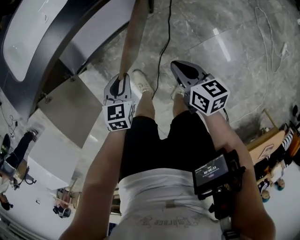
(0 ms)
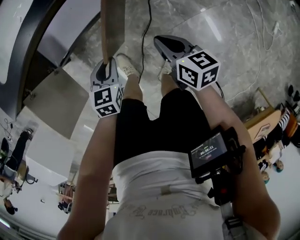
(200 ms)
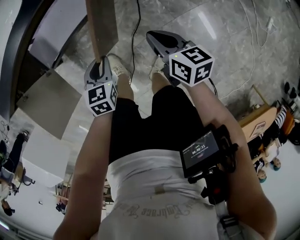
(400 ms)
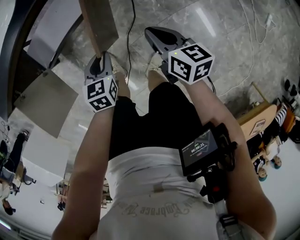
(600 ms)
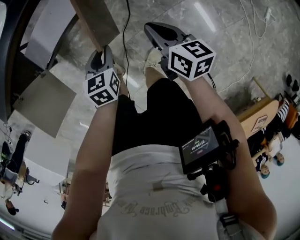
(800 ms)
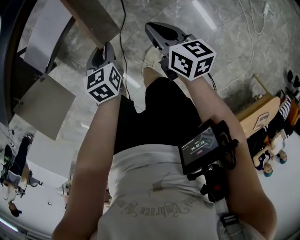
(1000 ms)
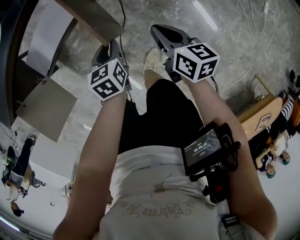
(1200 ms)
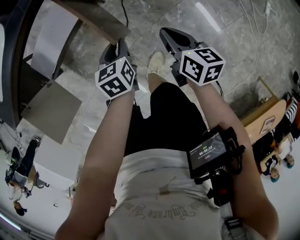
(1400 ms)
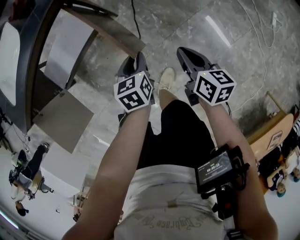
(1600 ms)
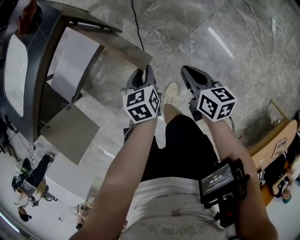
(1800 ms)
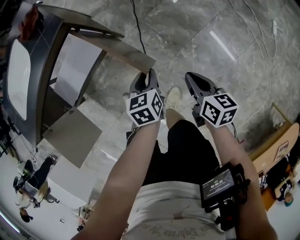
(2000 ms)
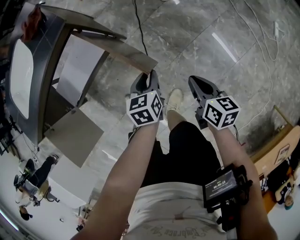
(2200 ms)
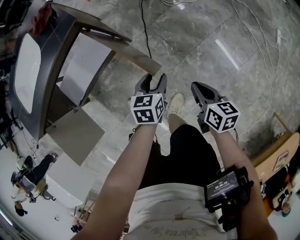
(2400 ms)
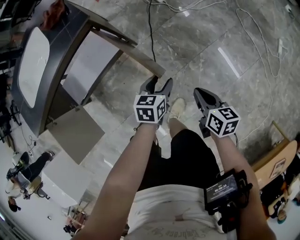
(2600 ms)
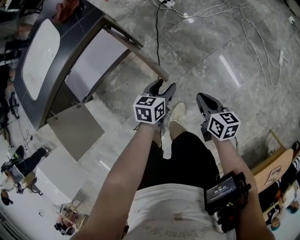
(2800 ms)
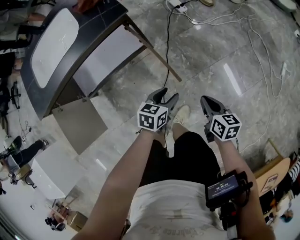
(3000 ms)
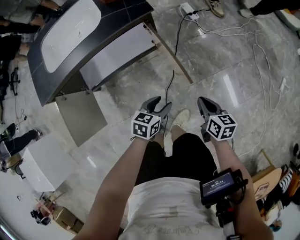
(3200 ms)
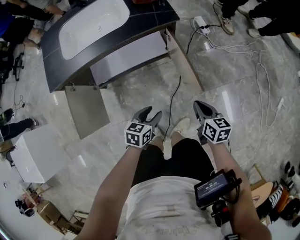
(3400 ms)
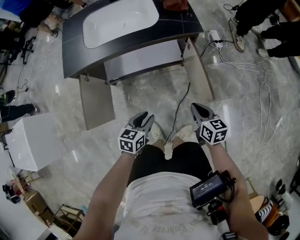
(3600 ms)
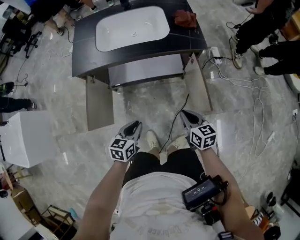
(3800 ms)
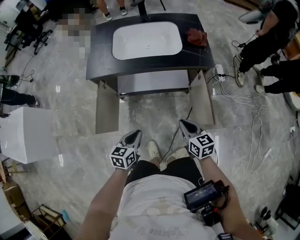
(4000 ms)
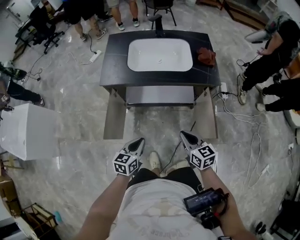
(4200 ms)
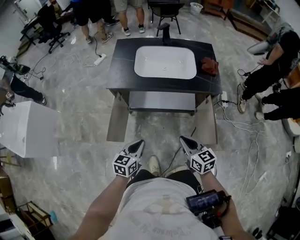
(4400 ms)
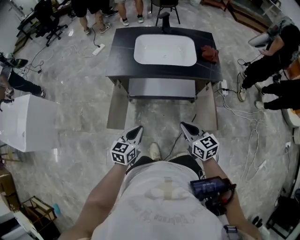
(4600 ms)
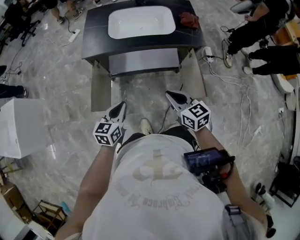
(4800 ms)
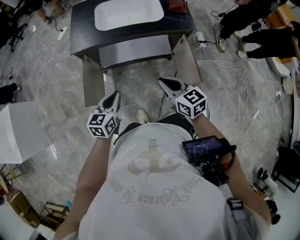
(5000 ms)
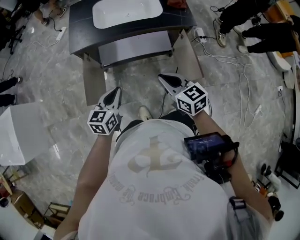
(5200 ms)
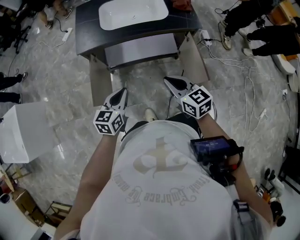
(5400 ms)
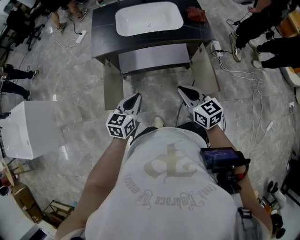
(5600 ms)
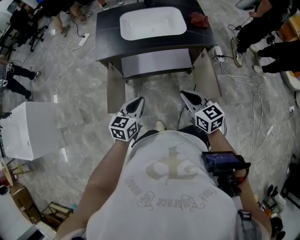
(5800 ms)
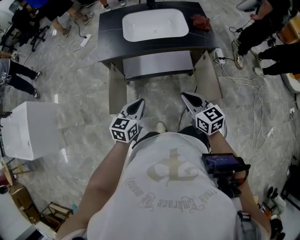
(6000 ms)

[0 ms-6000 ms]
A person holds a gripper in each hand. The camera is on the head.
0 ms to 1600 ms: The grippers both shift to the right by some 30 cm. The right gripper changes its angle by roughly 20 degrees.
1600 ms to 3000 ms: The left gripper rotates some 20 degrees, and opens its fingers.
3000 ms to 4400 ms: Both grippers are carried roughly 40 cm. The left gripper turns by about 40 degrees, and closes up. Meanwhile the right gripper changes its angle by roughly 50 degrees.
4400 ms to 6000 ms: The grippers move only a little.

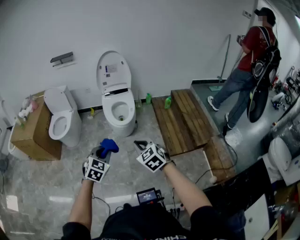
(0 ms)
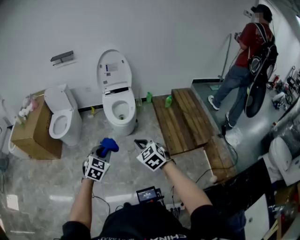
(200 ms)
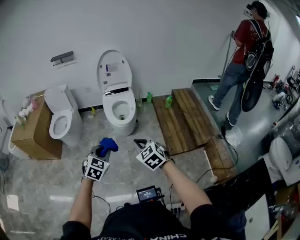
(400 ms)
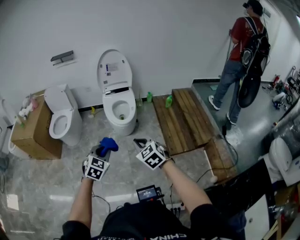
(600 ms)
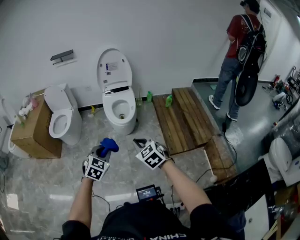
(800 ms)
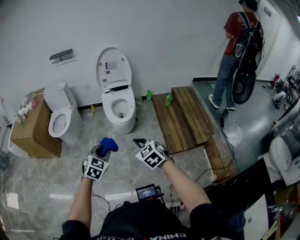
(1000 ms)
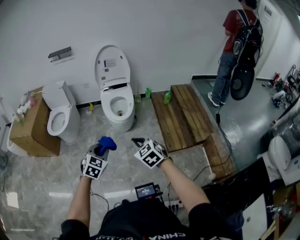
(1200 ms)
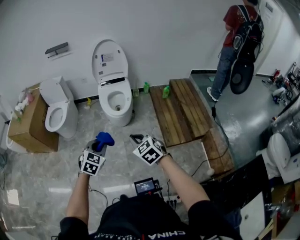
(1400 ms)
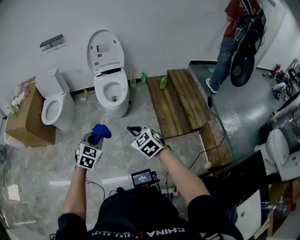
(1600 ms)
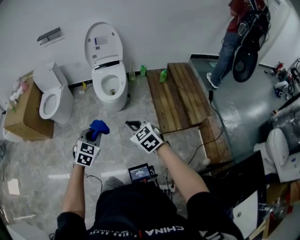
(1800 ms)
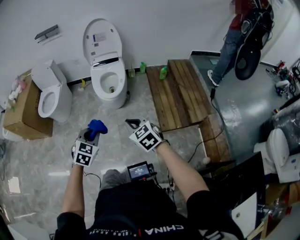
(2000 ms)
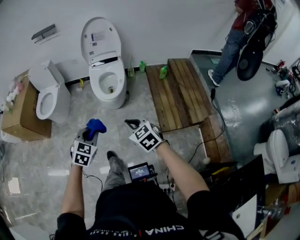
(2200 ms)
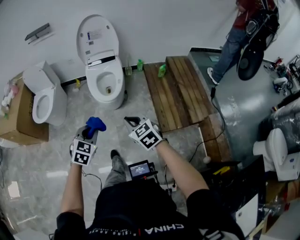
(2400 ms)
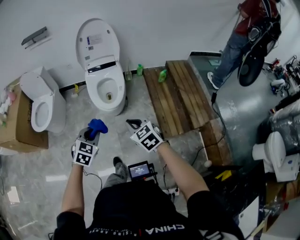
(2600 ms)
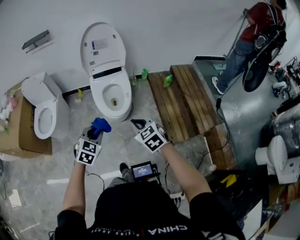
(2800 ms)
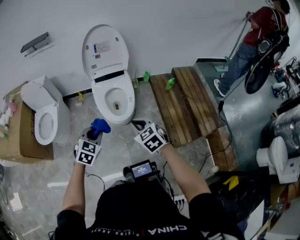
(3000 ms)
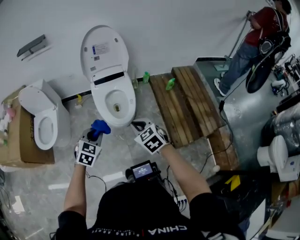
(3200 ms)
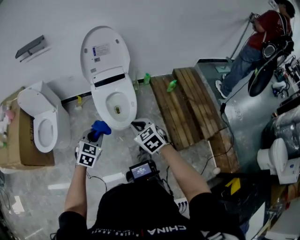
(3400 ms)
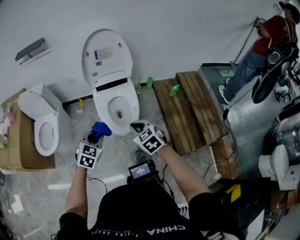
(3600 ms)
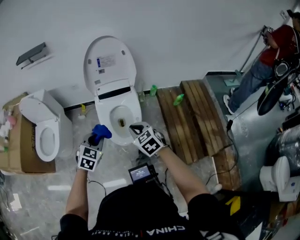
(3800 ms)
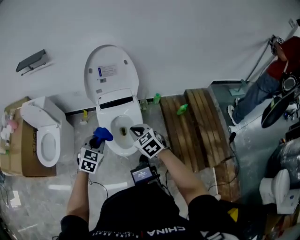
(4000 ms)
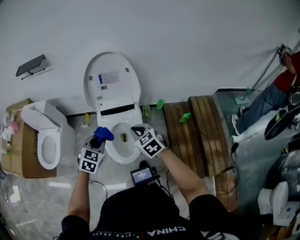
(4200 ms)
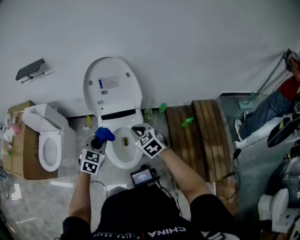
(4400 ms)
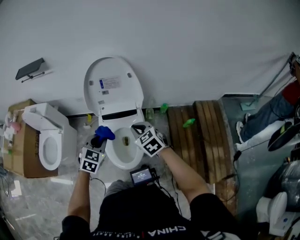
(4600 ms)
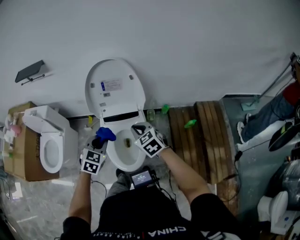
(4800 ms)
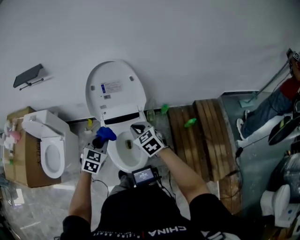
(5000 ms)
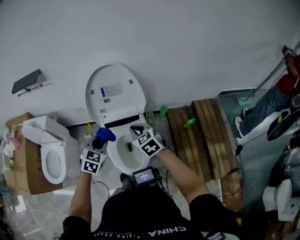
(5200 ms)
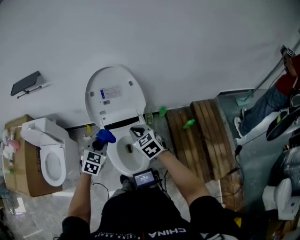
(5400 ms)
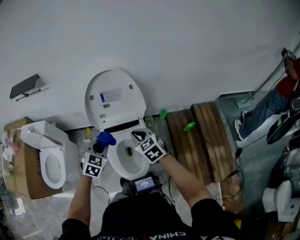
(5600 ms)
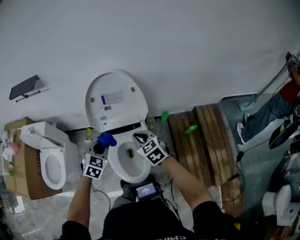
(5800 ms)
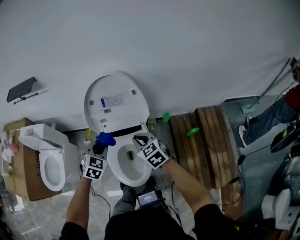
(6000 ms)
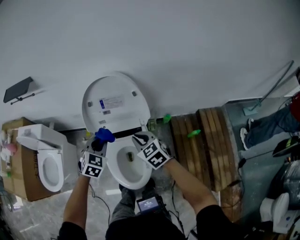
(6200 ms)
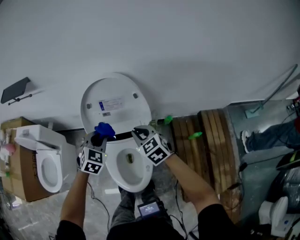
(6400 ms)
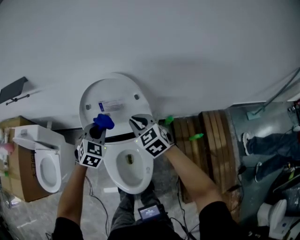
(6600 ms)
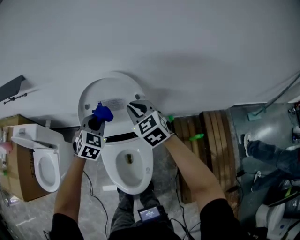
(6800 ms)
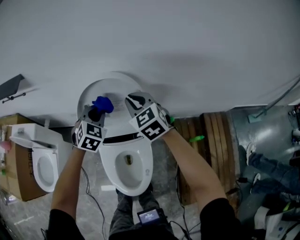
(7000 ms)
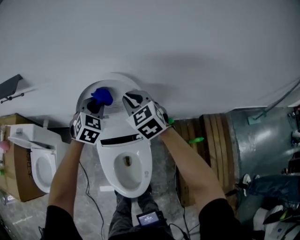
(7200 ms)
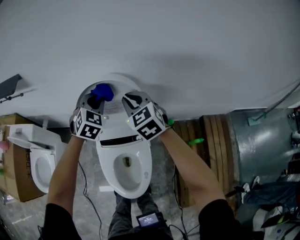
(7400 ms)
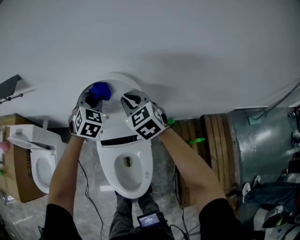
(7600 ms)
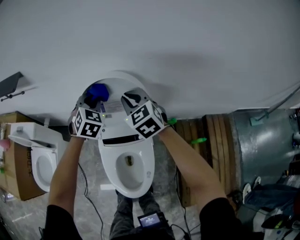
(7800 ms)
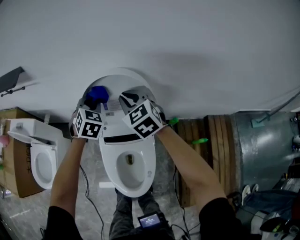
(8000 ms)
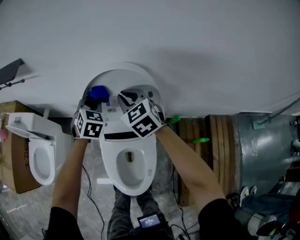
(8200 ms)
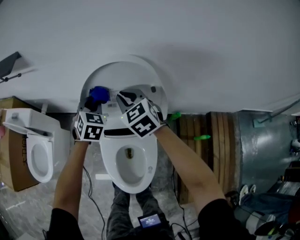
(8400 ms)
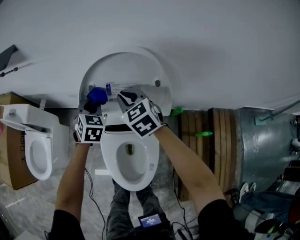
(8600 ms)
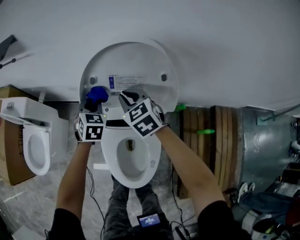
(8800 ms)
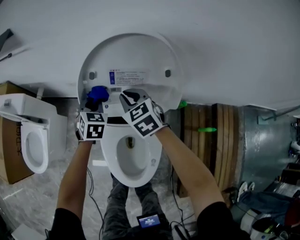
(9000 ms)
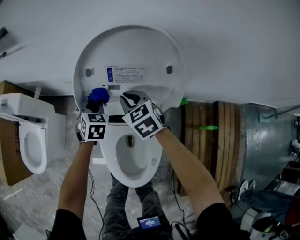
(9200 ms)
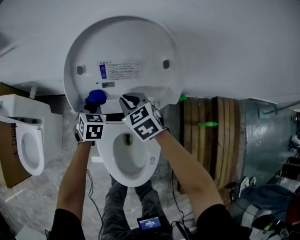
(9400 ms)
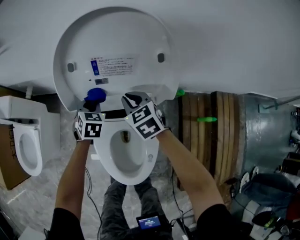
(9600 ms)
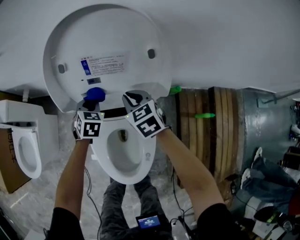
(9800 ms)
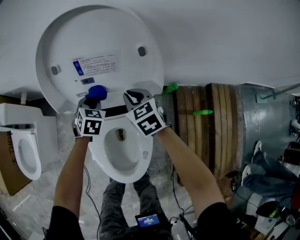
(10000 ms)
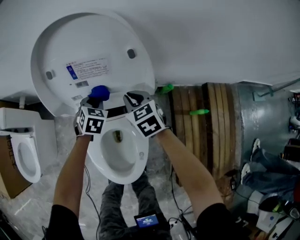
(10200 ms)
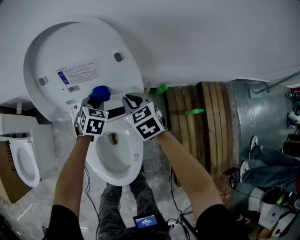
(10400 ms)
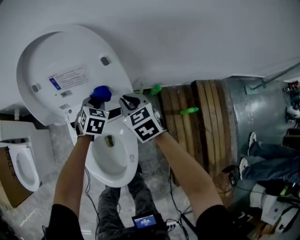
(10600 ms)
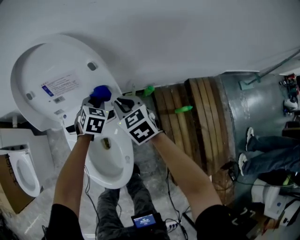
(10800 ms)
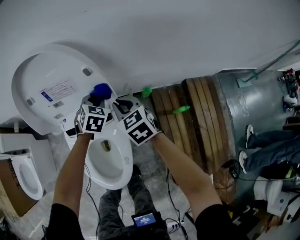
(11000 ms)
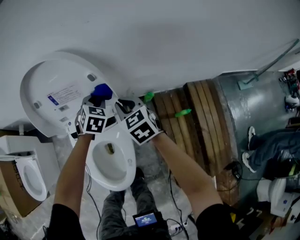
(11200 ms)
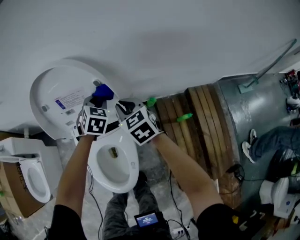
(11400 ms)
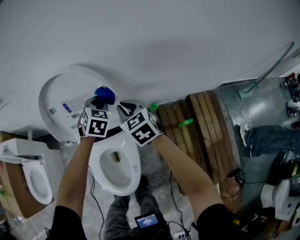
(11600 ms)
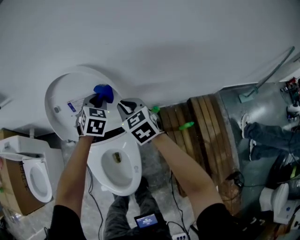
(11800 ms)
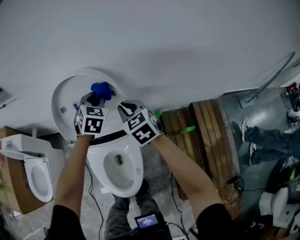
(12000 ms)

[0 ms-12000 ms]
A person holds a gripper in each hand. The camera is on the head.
0 ms to 1600 ms: The left gripper ends up roughly 5 cm from where it was.
1600 ms to 3000 ms: Both grippers move forward, about 35 cm.
3000 ms to 4400 ms: The grippers both shift forward by some 40 cm.
4400 ms to 6000 ms: The two grippers go approximately 15 cm forward.
6000 ms to 7600 ms: Both grippers move forward, about 25 cm.
7600 ms to 9000 ms: The two grippers go about 25 cm downward and to the left. The left gripper rotates some 30 degrees.
9000 ms to 10400 ms: The right gripper shifts roughly 20 cm to the right, backward and downward, while the left gripper shifts some 20 cm to the right and downward.
10400 ms to 12000 ms: The grippers both shift upward by some 20 cm.

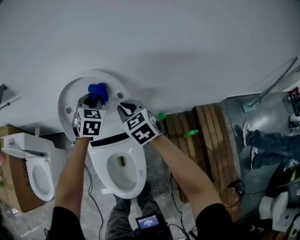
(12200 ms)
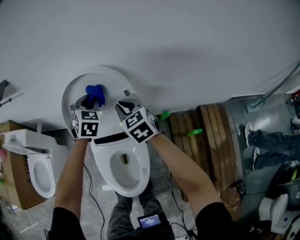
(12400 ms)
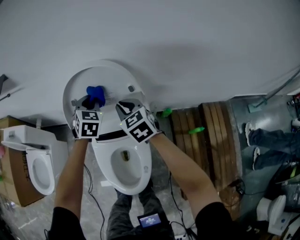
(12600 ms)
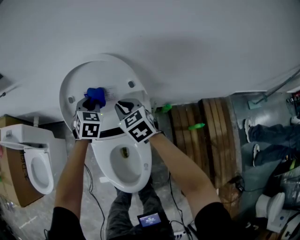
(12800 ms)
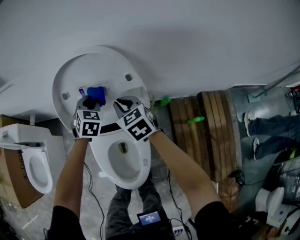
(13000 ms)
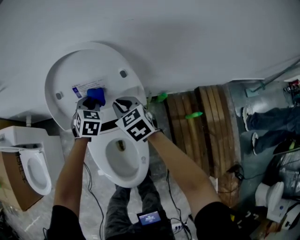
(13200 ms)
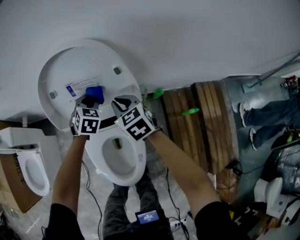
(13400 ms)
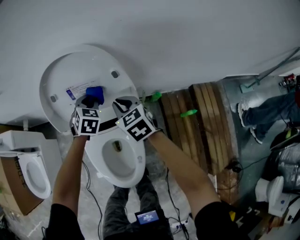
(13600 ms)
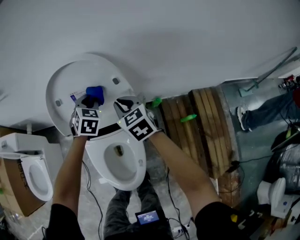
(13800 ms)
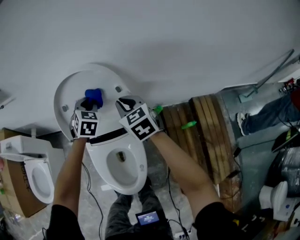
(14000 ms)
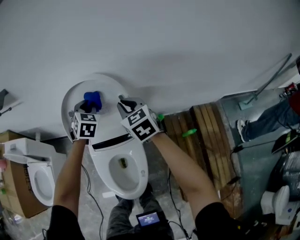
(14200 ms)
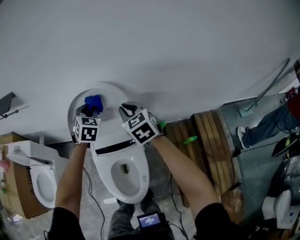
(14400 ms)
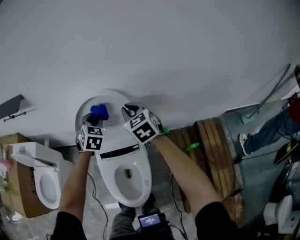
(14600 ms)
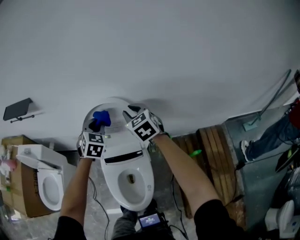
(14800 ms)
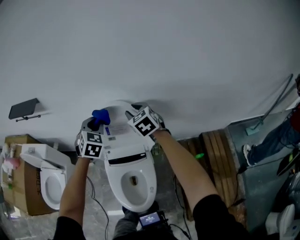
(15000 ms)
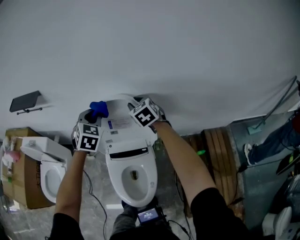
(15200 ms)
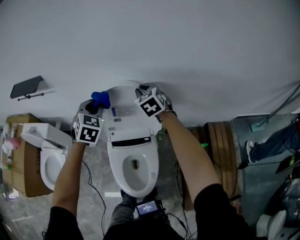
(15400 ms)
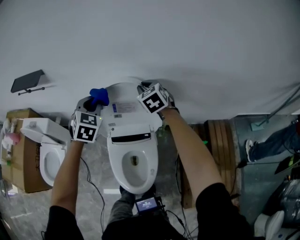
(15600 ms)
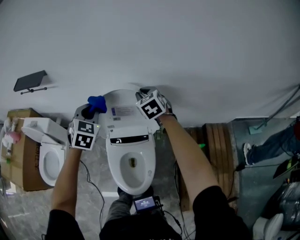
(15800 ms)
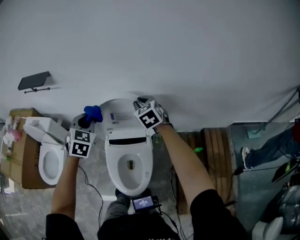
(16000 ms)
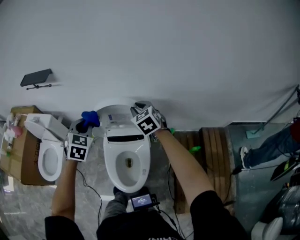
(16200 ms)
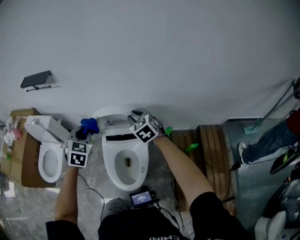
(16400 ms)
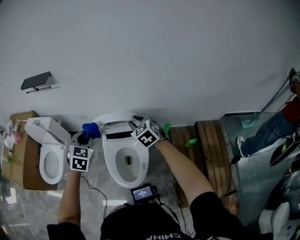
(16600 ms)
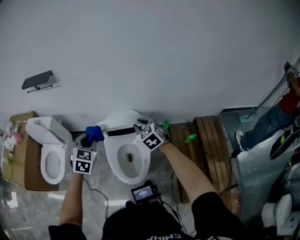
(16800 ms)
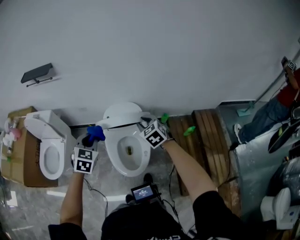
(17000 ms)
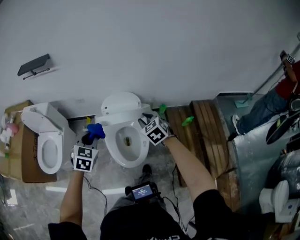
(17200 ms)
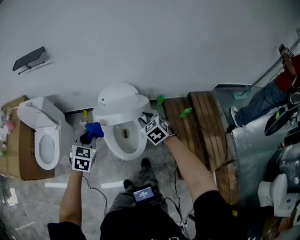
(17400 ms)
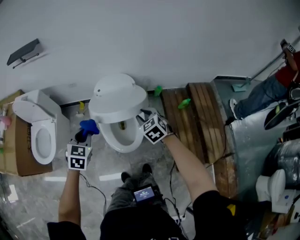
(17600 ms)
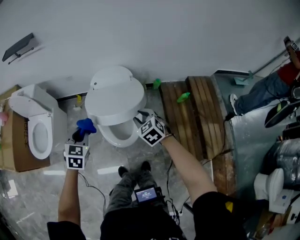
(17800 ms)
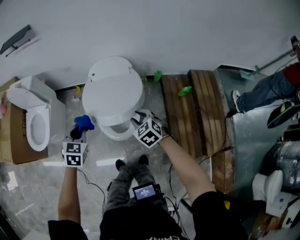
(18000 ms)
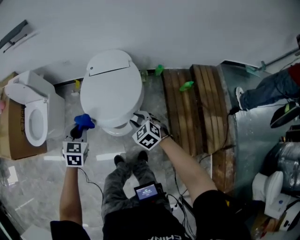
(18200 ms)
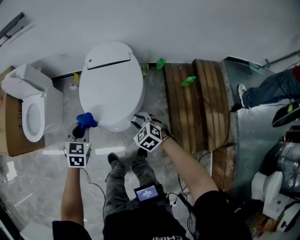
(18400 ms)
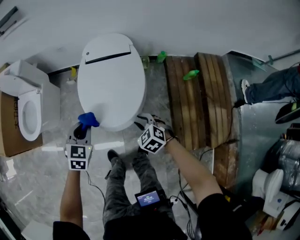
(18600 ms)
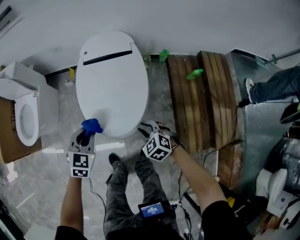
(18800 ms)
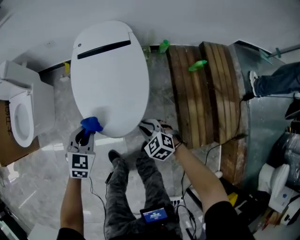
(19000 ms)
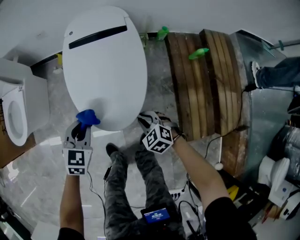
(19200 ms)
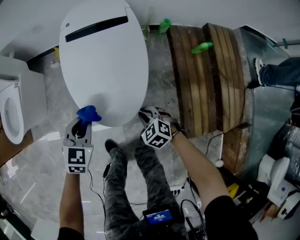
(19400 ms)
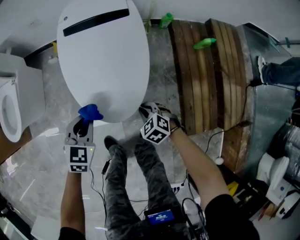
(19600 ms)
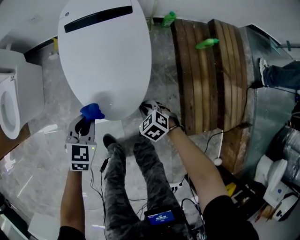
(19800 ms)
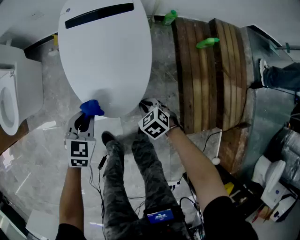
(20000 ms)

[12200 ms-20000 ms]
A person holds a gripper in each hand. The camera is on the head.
12200 ms to 13800 ms: The left gripper goes some 10 cm downward. Meanwhile the right gripper shifts some 5 cm downward.
13800 ms to 15400 ms: The left gripper heads upward and to the left, covering about 25 cm. Meanwhile the right gripper goes roughly 20 cm upward and forward.
15400 ms to 16800 ms: Both grippers travel together backward, about 30 cm.
16800 ms to 18400 ms: The grippers both shift downward and backward by some 30 cm.
18400 ms to 20000 ms: The two grippers go about 25 cm downward. The right gripper closes its fingers.
